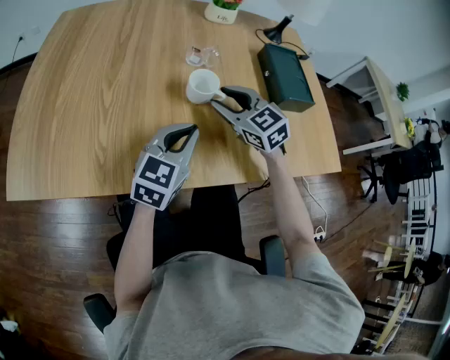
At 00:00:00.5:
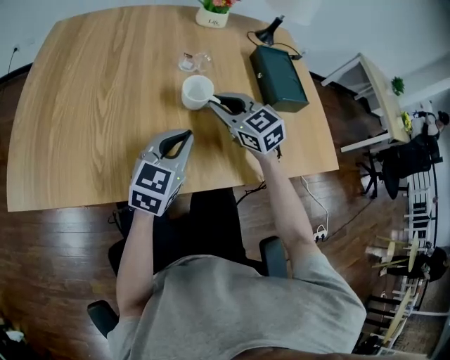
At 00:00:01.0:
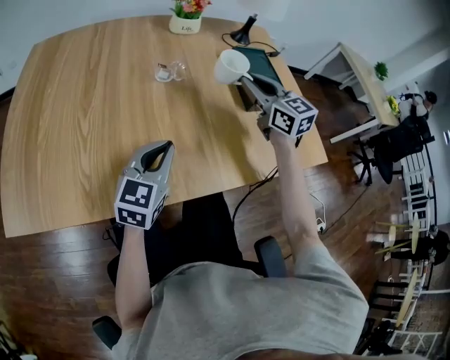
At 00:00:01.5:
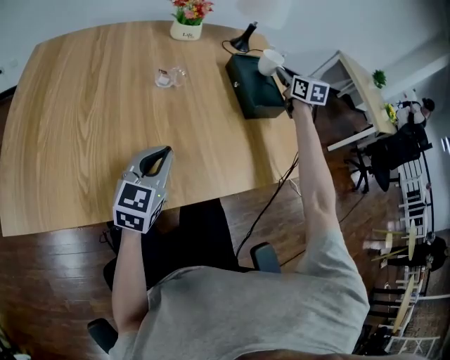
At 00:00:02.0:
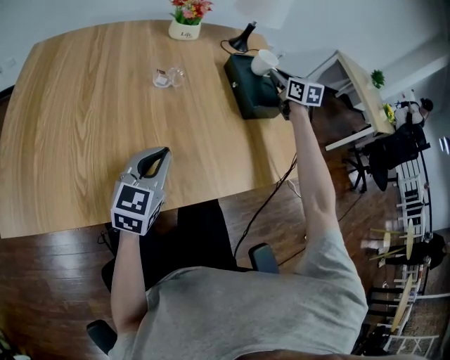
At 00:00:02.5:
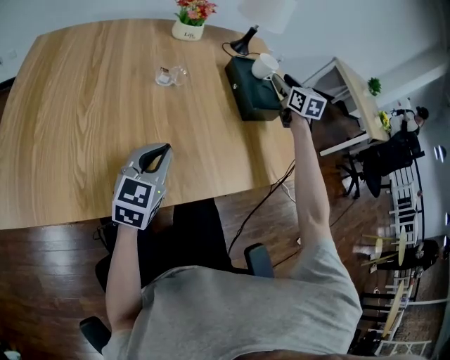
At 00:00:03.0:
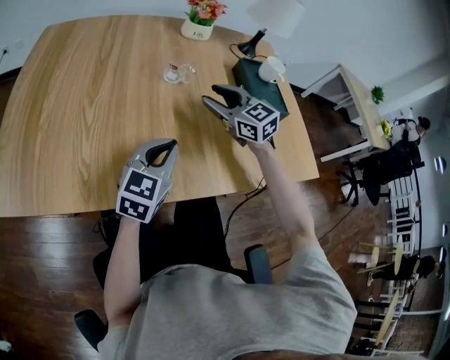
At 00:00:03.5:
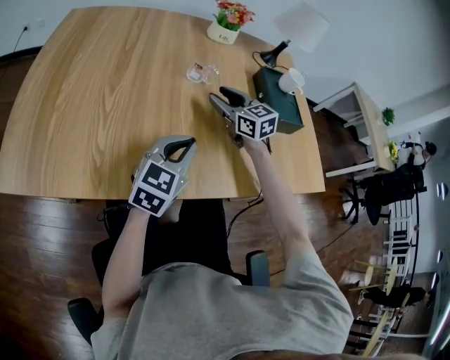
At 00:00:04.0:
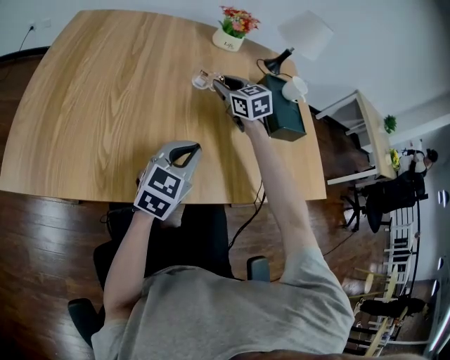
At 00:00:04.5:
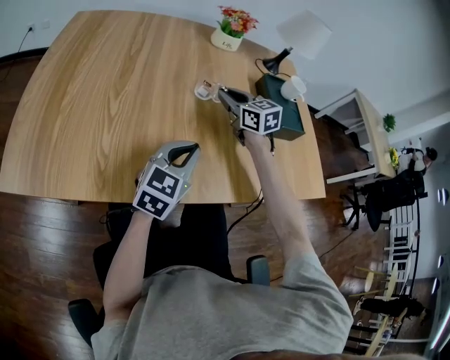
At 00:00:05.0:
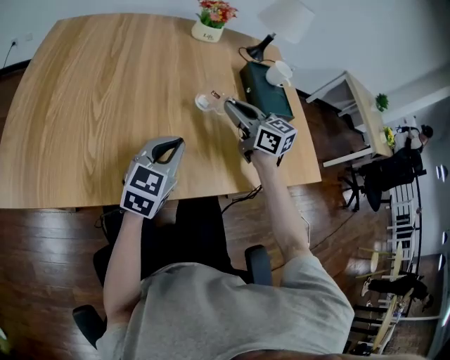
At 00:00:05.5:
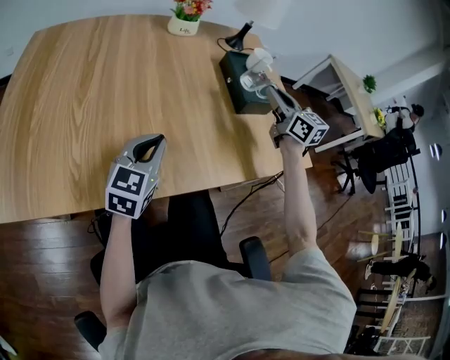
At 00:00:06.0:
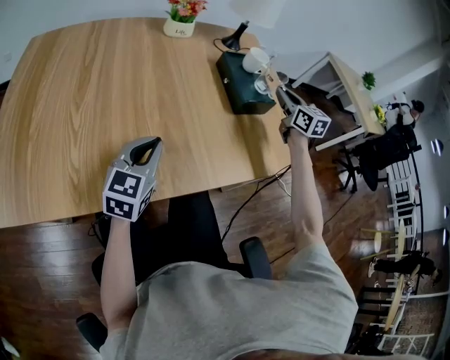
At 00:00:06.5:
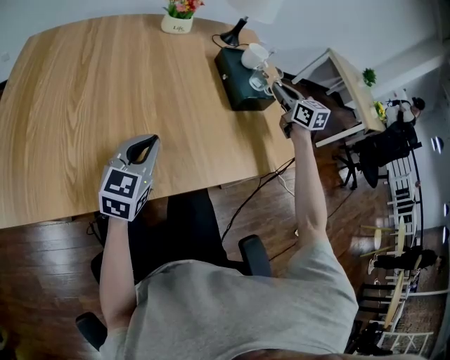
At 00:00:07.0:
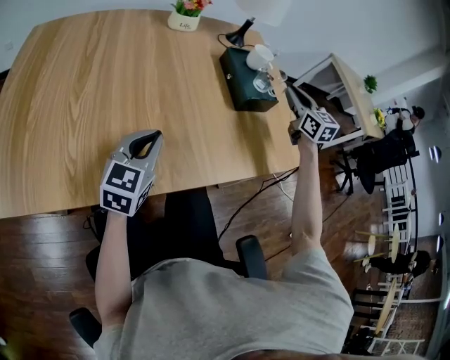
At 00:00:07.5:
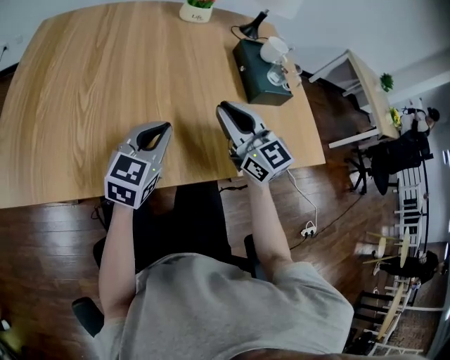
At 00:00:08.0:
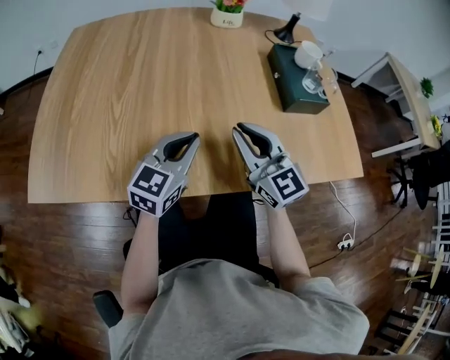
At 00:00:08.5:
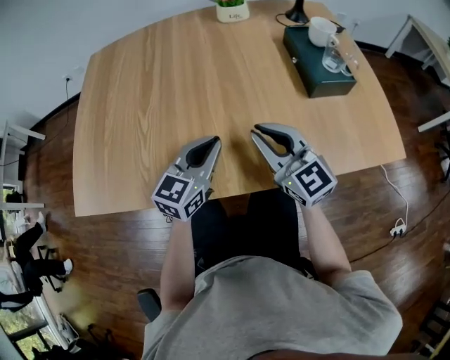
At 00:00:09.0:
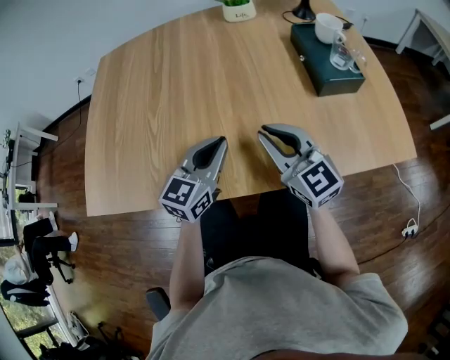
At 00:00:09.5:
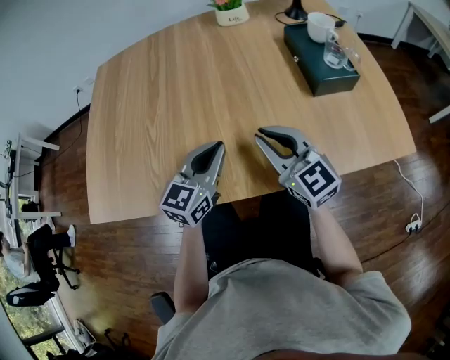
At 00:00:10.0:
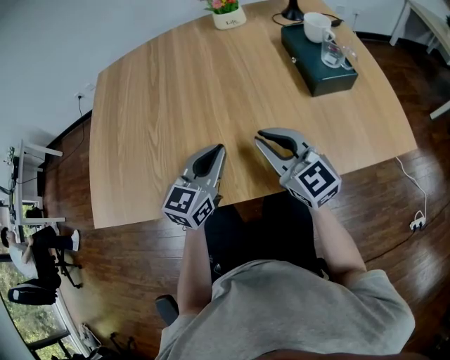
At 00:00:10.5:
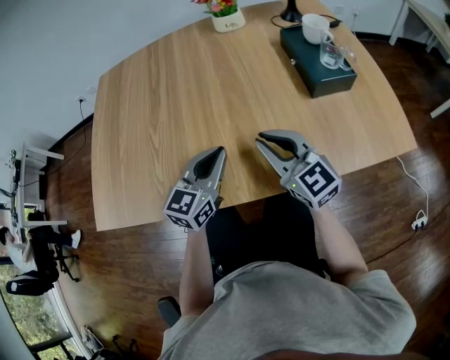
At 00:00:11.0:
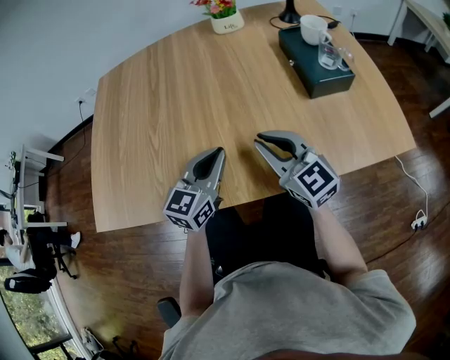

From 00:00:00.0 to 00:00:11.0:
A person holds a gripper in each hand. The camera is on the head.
From 00:00:00.0 to 00:00:02.0: The right gripper shifts about 35 cm to the right and forward, turns by some 40 degrees, and closes its fingers.
From 00:00:02.0 to 00:00:03.5: The right gripper goes roughly 30 cm to the left and backward, rotates some 30 degrees, and opens its fingers.
From 00:00:03.5 to 00:00:05.5: The right gripper heads to the right and upward, covering approximately 25 cm, swivels approximately 20 degrees, and closes its fingers.
From 00:00:05.5 to 00:00:07.5: The right gripper travels to the left and backward by roughly 20 cm.
From 00:00:07.5 to 00:00:09.0: The right gripper changes place by approximately 5 cm.
From 00:00:09.0 to 00:00:11.0: Both grippers stay put.

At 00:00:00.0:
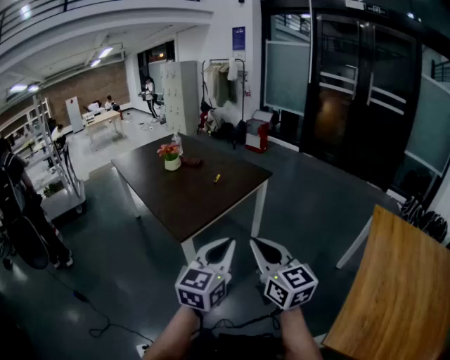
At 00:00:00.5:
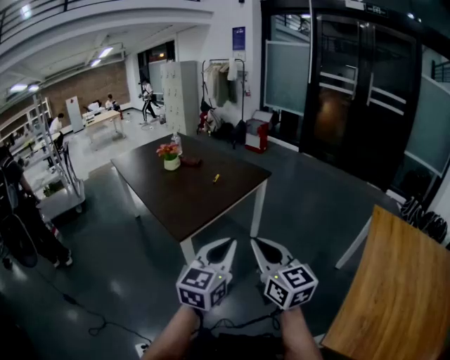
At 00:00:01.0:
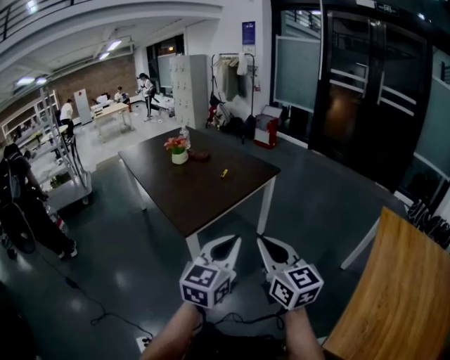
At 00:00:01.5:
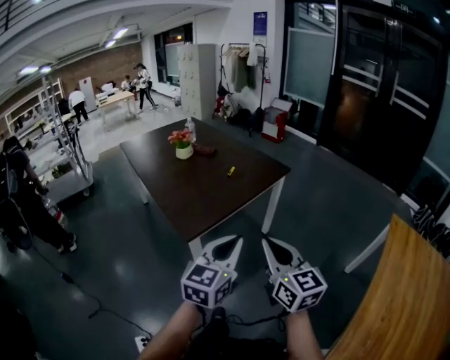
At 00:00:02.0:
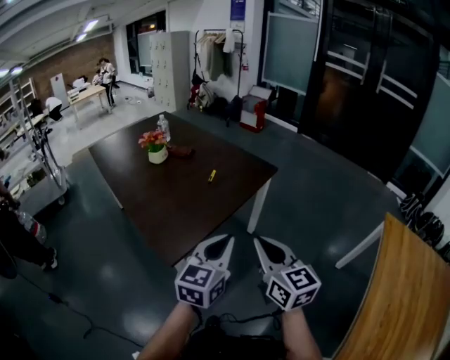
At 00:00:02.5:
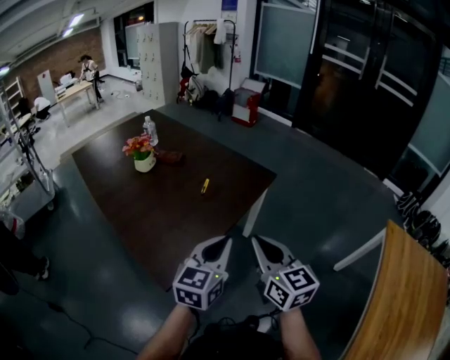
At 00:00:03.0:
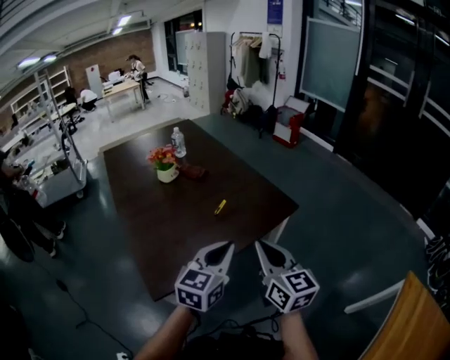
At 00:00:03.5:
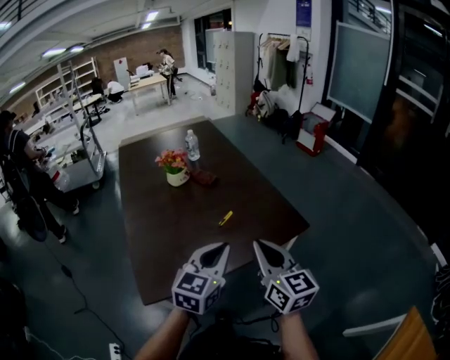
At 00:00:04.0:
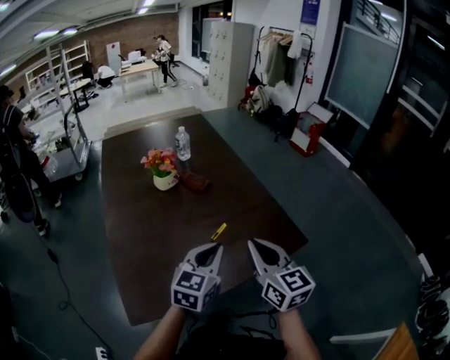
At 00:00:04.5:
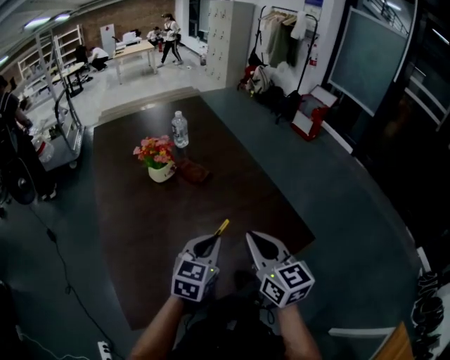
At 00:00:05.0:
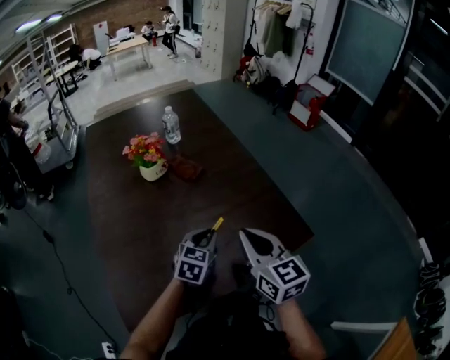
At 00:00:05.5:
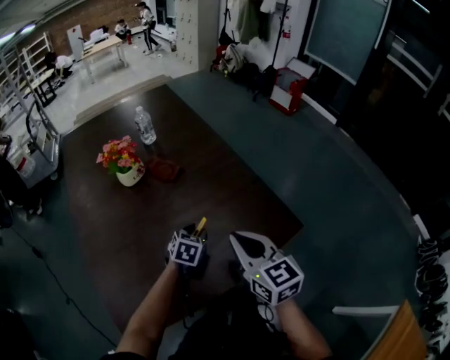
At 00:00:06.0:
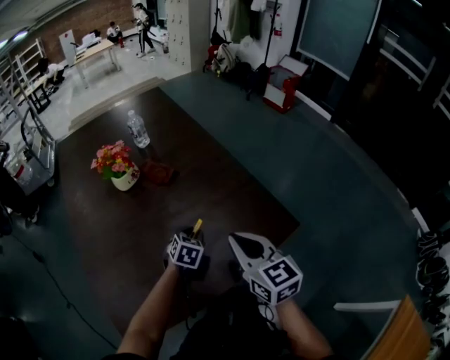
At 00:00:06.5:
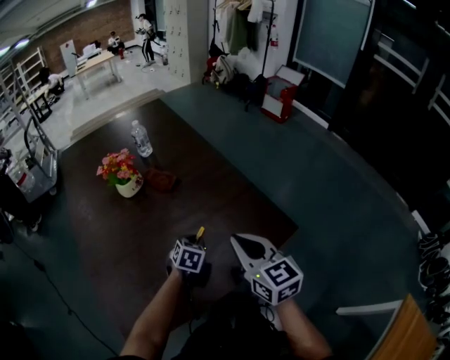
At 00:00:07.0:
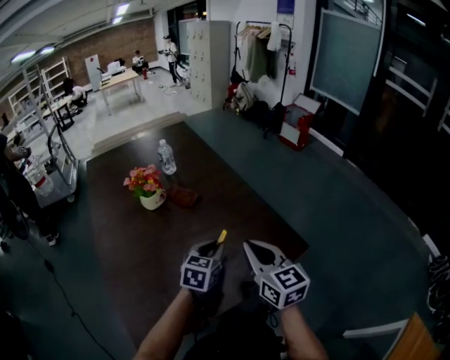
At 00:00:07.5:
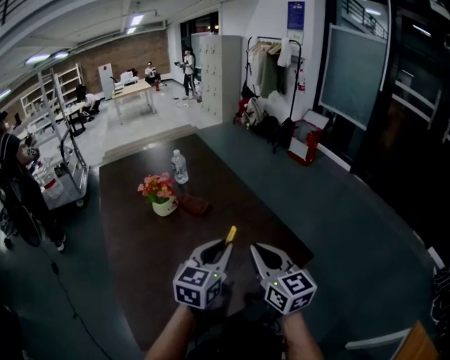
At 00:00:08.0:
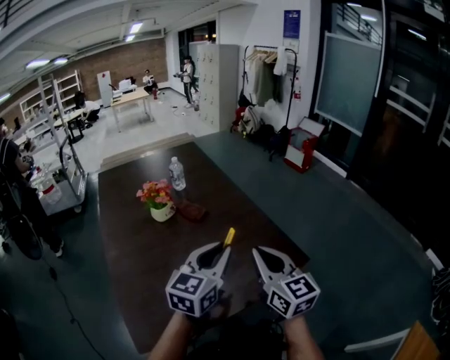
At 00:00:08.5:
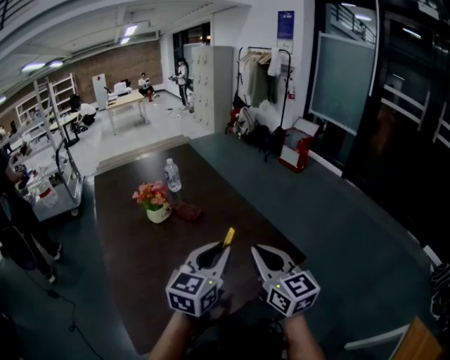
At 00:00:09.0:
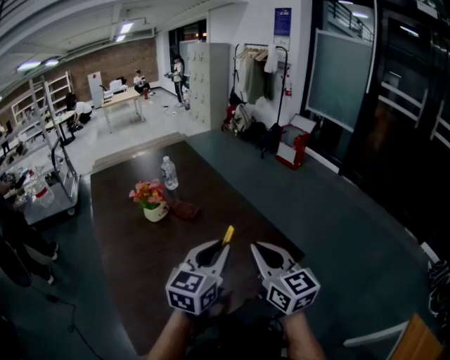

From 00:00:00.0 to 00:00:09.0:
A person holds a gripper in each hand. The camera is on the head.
From 00:00:00.0 to 00:00:02.0: Both grippers travel together forward, roughly 20 cm.
From 00:00:02.0 to 00:00:04.5: The pair of grippers is taken forward, approximately 40 cm. The left gripper turns by about 20 degrees, while the right gripper swivels about 20 degrees.
From 00:00:04.5 to 00:00:07.0: The left gripper heads forward, covering some 5 cm, and reaches about 20 cm downward, then returns.
From 00:00:07.0 to 00:00:09.0: The left gripper moves upward and backward, about 20 cm, and rotates approximately 20 degrees; the right gripper heads upward, covering approximately 5 cm.

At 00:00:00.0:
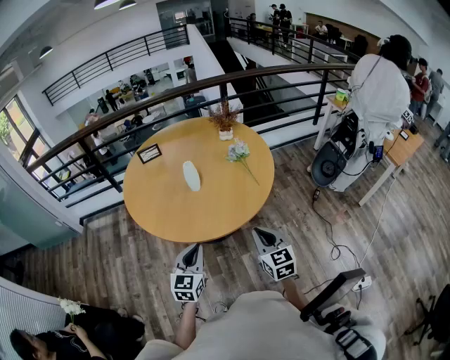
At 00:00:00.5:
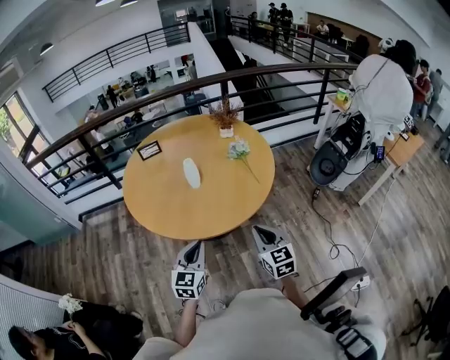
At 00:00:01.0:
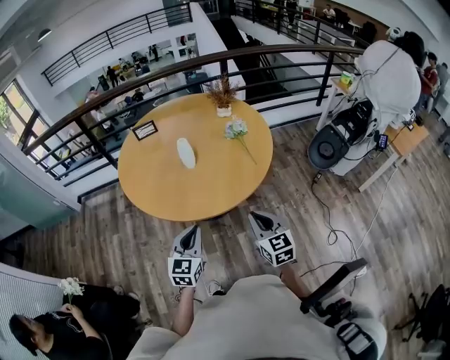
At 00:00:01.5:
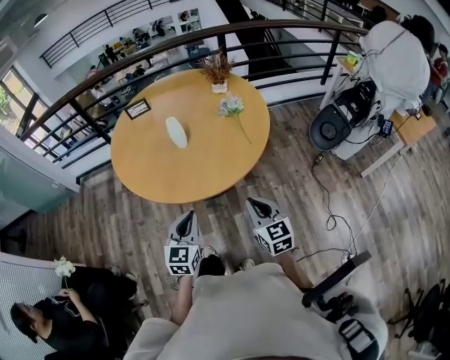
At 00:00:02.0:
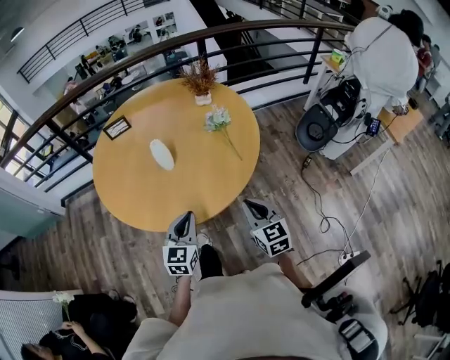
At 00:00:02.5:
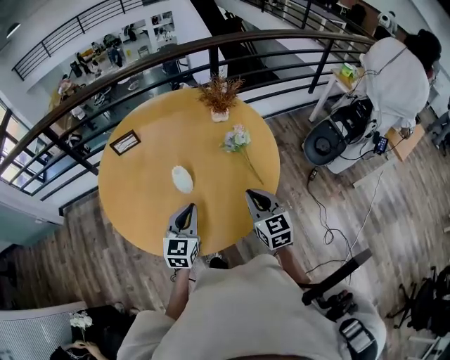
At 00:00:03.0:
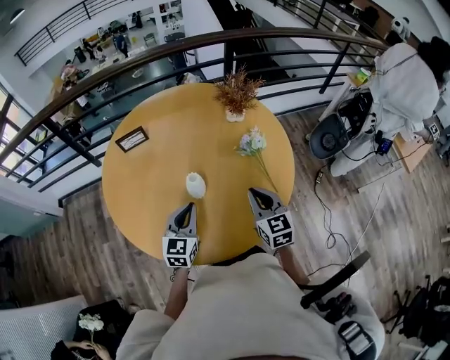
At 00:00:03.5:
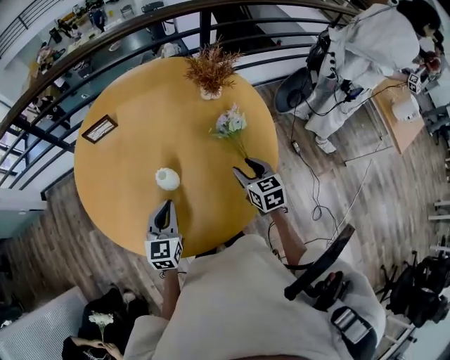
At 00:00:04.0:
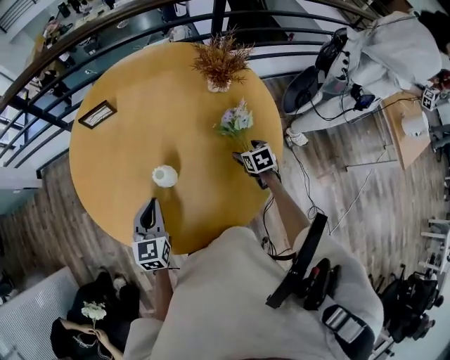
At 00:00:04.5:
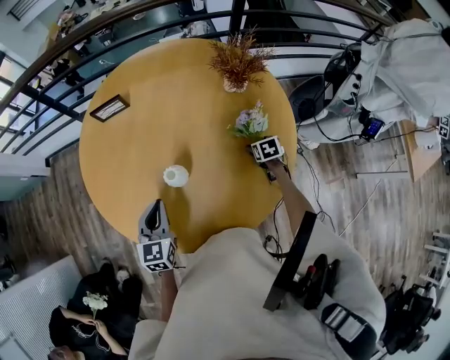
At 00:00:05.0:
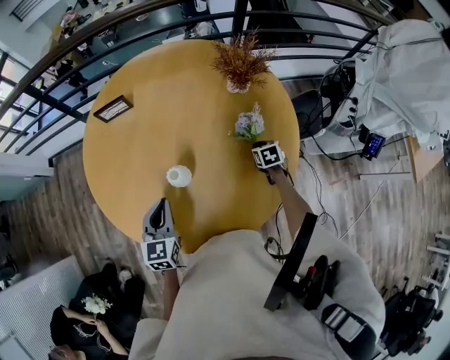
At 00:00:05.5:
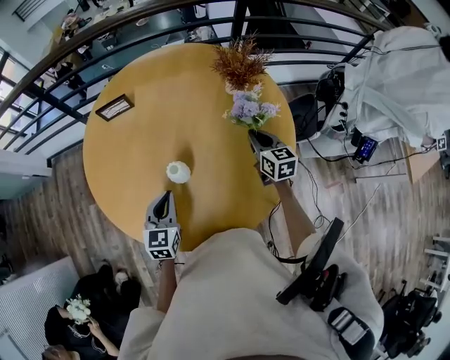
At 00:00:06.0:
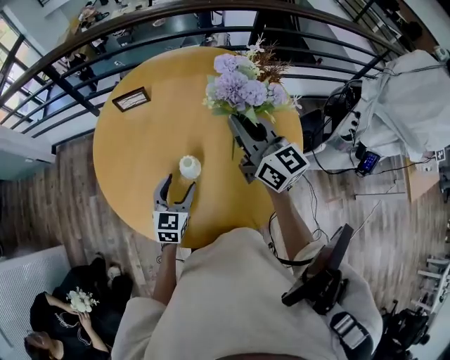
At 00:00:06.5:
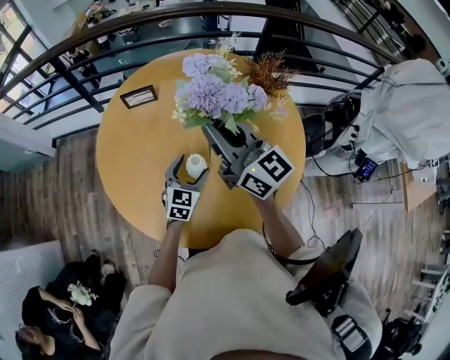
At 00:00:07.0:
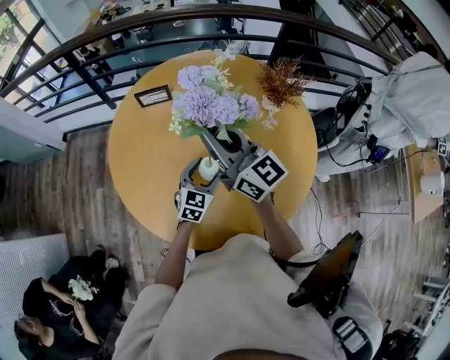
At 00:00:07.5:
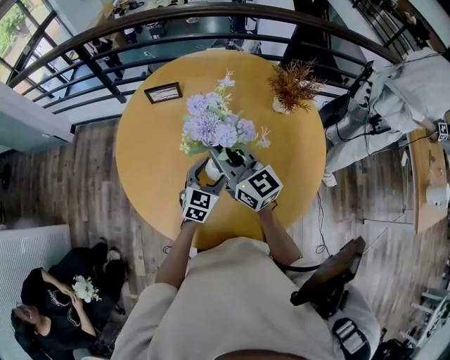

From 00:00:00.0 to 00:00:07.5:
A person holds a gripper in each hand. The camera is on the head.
From 00:00:00.0 to 00:00:02.0: The right gripper is displaced forward by roughly 5 cm; the left gripper is displaced forward and to the right by some 10 cm.
From 00:00:02.0 to 00:00:04.0: The right gripper travels forward and downward by approximately 40 cm, points its fingers about 40 degrees further downward, and opens, while the left gripper heads forward and to the left, covering approximately 25 cm.
From 00:00:04.0 to 00:00:05.5: The right gripper heads upward, covering some 15 cm, tilts its fingers approximately 30 degrees upward, and closes up.
From 00:00:05.5 to 00:00:07.5: The right gripper shifts approximately 30 cm to the left and upward, and rotates roughly 40 degrees; the left gripper heads forward and to the right, covering roughly 10 cm, and opens its fingers.
